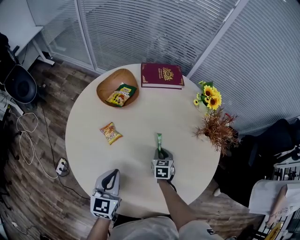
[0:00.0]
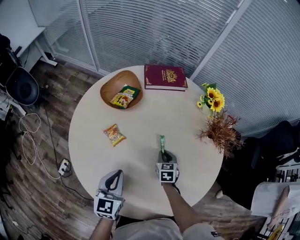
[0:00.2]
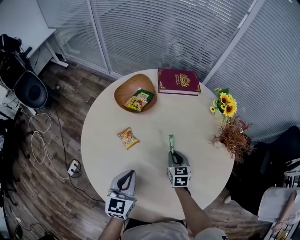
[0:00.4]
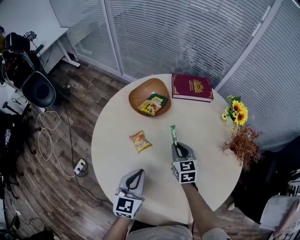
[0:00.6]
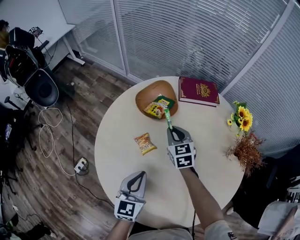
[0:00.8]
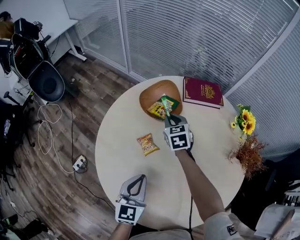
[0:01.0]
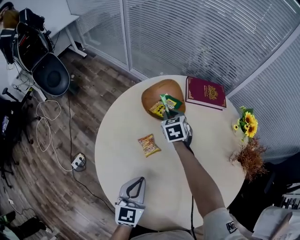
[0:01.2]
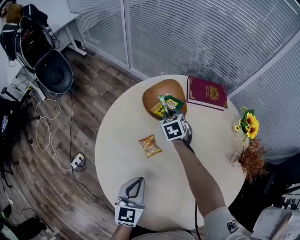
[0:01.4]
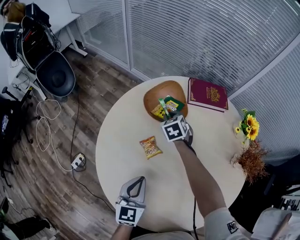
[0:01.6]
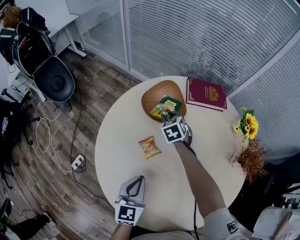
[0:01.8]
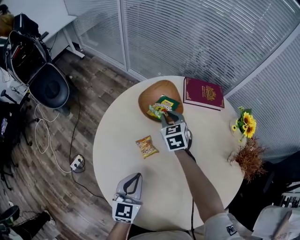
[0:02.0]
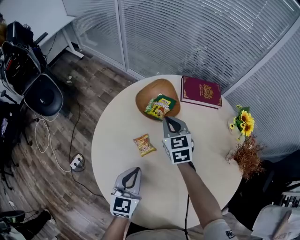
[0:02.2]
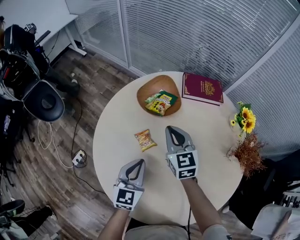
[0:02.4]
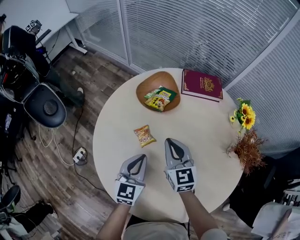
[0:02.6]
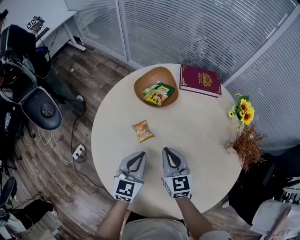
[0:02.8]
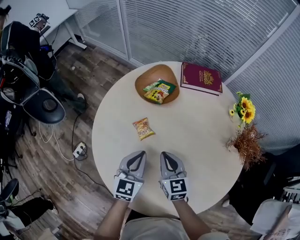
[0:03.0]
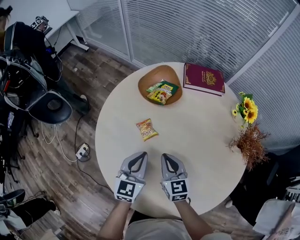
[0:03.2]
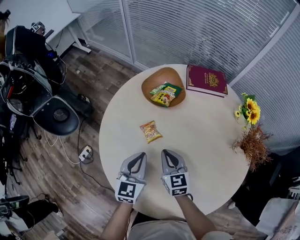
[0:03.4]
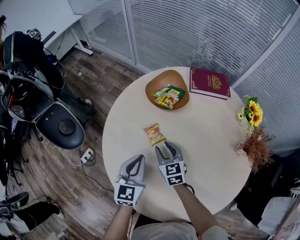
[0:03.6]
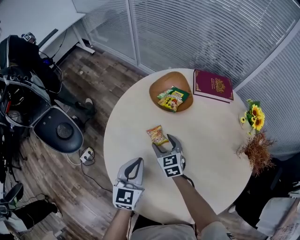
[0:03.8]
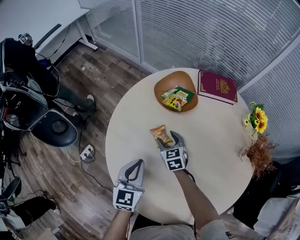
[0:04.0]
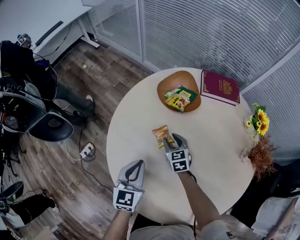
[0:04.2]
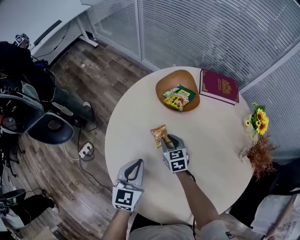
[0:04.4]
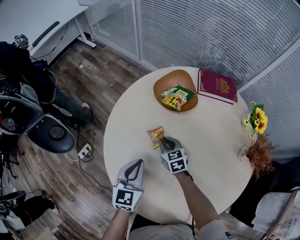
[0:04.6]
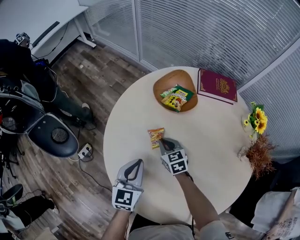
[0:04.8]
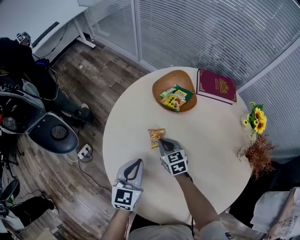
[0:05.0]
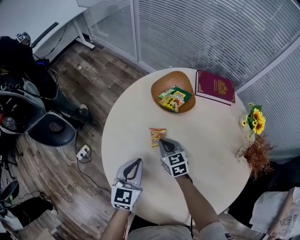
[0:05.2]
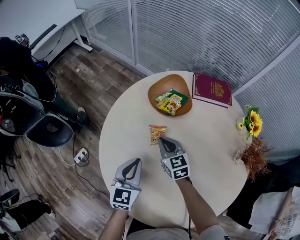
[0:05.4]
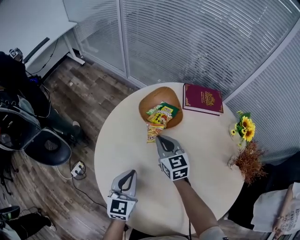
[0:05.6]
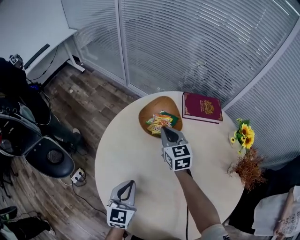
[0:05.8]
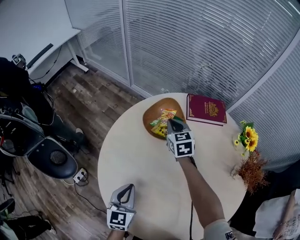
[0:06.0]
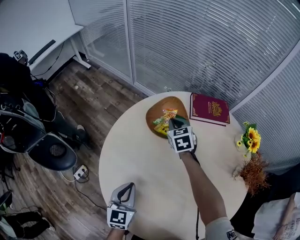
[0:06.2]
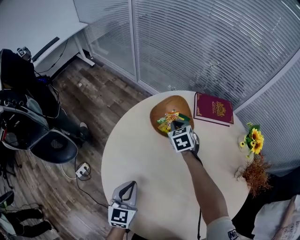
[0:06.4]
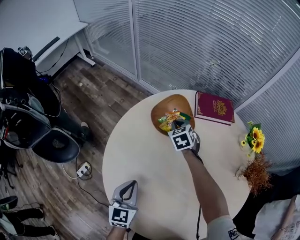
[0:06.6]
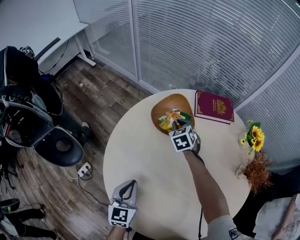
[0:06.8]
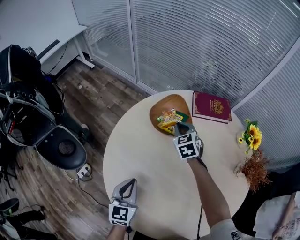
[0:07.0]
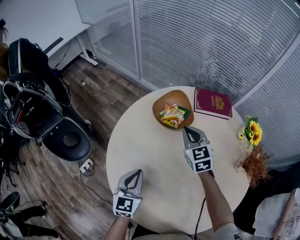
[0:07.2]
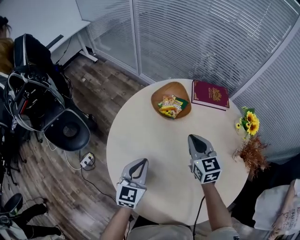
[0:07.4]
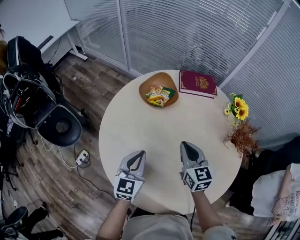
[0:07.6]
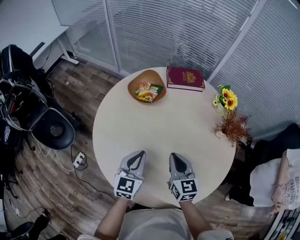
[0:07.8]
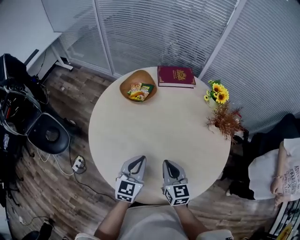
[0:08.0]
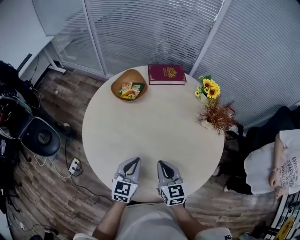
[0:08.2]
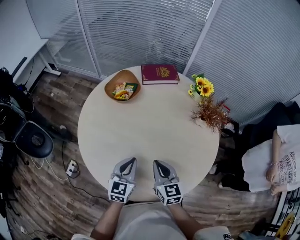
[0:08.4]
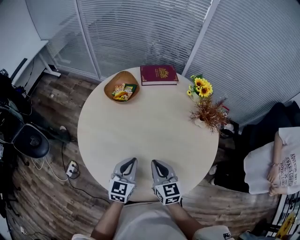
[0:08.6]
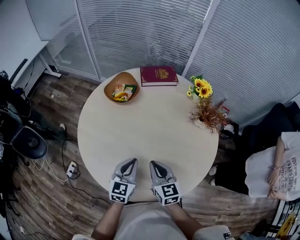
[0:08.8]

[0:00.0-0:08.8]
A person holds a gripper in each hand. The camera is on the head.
0:00.0 to 0:01.4: The right gripper shifts approximately 35 cm forward and to the left, and rotates roughly 30 degrees. Meanwhile the left gripper heads to the left, covering some 5 cm.
0:01.4 to 0:03.0: The left gripper ends up approximately 5 cm from where it was, while the right gripper shifts about 30 cm backward, and rotates some 30 degrees.
0:03.0 to 0:04.4: The right gripper moves downward, forward and to the left, about 20 cm, while the left gripper travels to the left by roughly 10 cm.
0:04.4 to 0:05.8: The right gripper moves upward, forward and to the right, roughly 20 cm.
0:05.8 to 0:07.4: The right gripper is displaced backward, upward and to the right by some 15 cm.
0:07.4 to 0:08.8: The left gripper travels to the right and backward by approximately 20 cm. The right gripper heads backward, covering some 25 cm.

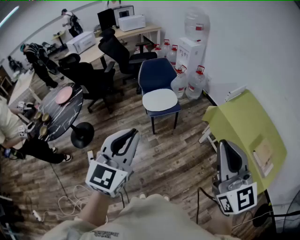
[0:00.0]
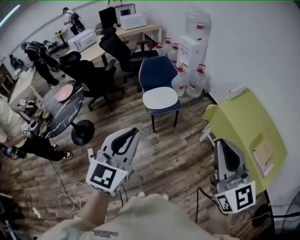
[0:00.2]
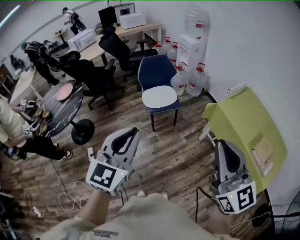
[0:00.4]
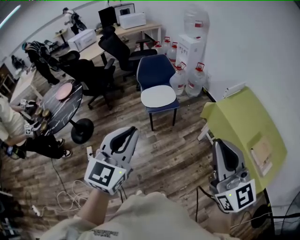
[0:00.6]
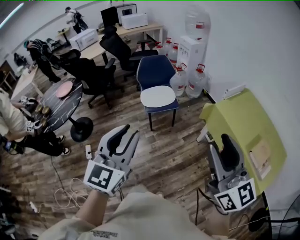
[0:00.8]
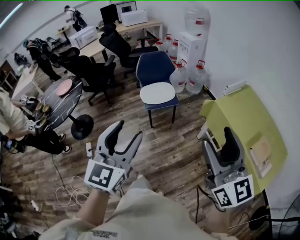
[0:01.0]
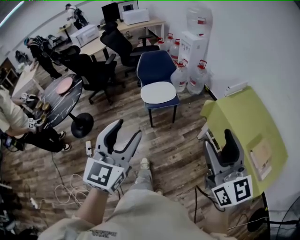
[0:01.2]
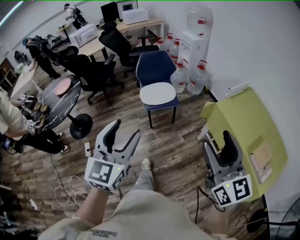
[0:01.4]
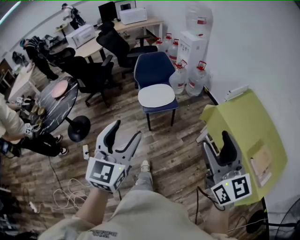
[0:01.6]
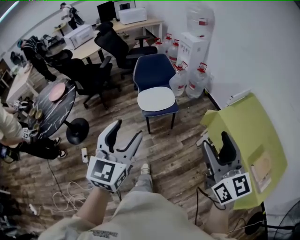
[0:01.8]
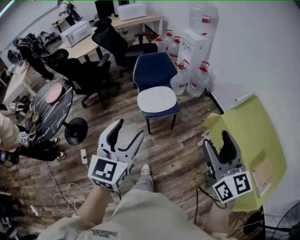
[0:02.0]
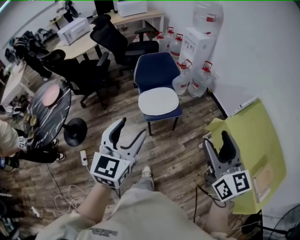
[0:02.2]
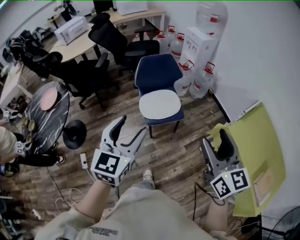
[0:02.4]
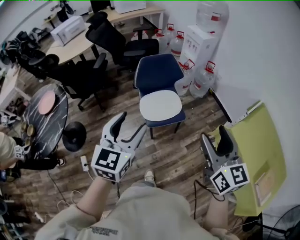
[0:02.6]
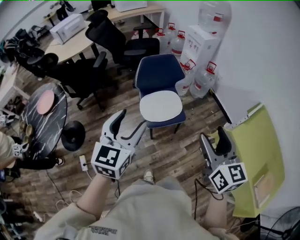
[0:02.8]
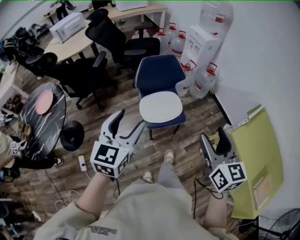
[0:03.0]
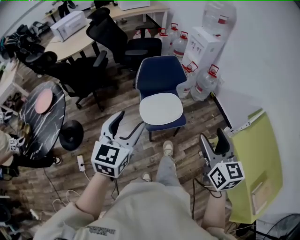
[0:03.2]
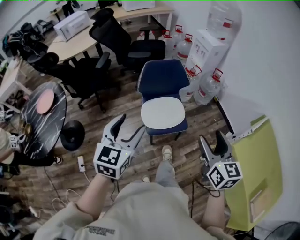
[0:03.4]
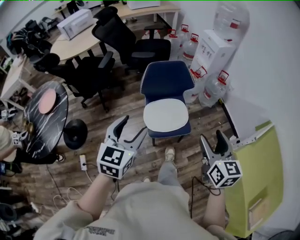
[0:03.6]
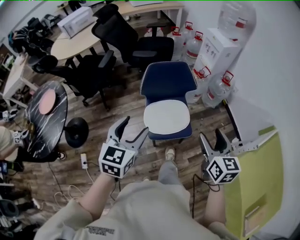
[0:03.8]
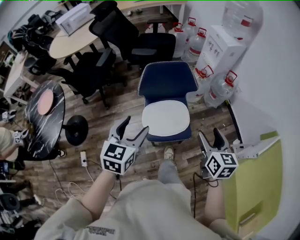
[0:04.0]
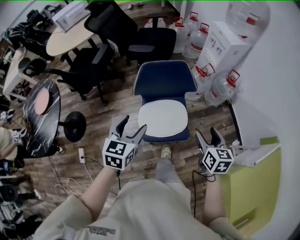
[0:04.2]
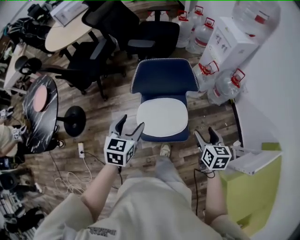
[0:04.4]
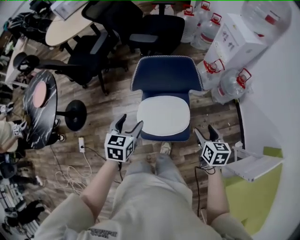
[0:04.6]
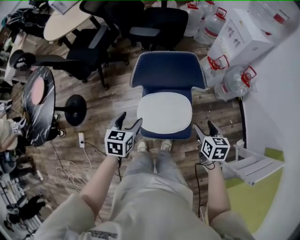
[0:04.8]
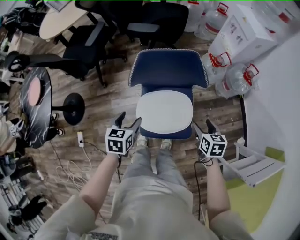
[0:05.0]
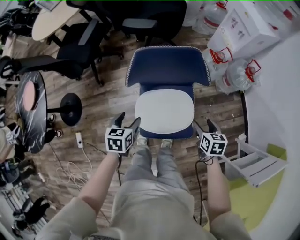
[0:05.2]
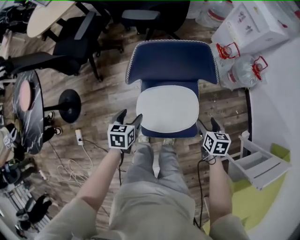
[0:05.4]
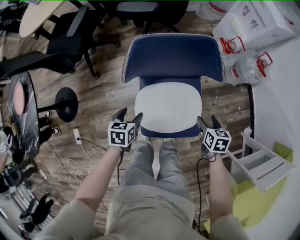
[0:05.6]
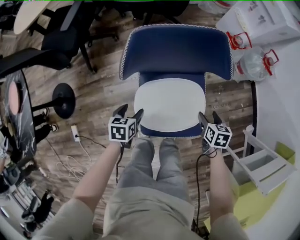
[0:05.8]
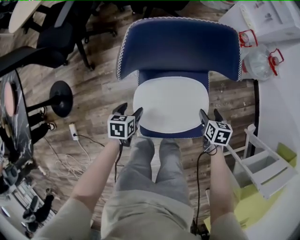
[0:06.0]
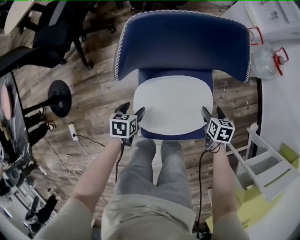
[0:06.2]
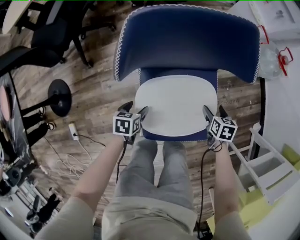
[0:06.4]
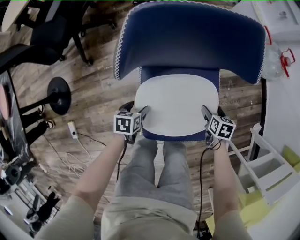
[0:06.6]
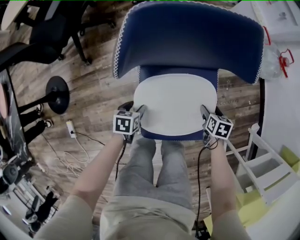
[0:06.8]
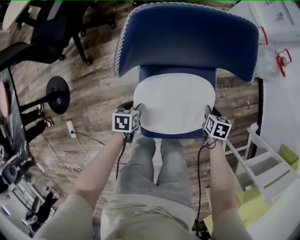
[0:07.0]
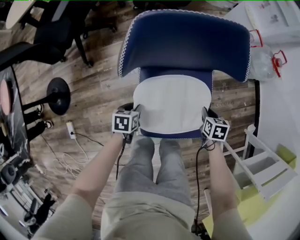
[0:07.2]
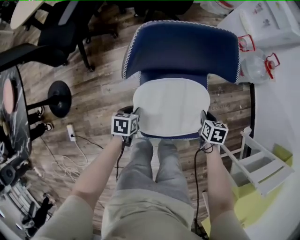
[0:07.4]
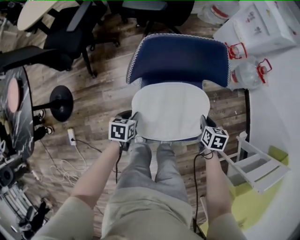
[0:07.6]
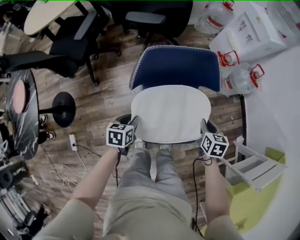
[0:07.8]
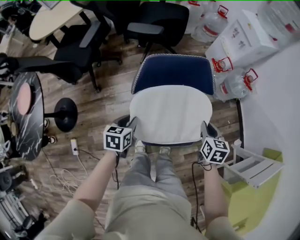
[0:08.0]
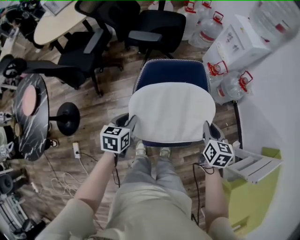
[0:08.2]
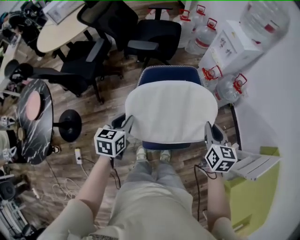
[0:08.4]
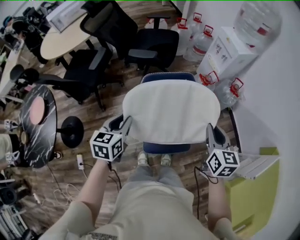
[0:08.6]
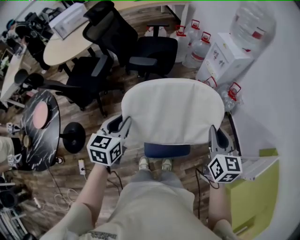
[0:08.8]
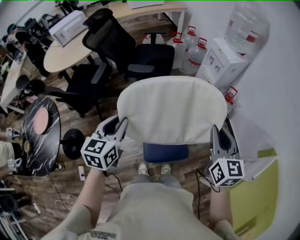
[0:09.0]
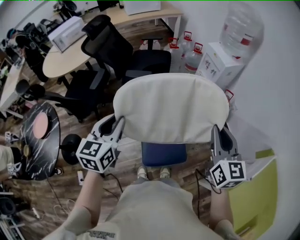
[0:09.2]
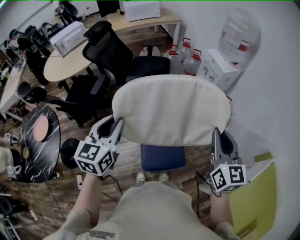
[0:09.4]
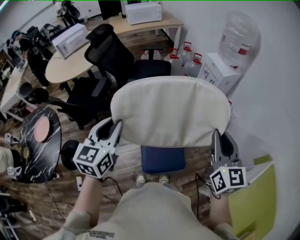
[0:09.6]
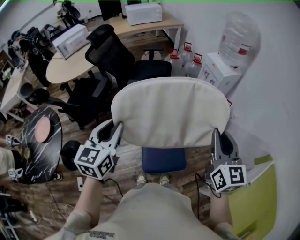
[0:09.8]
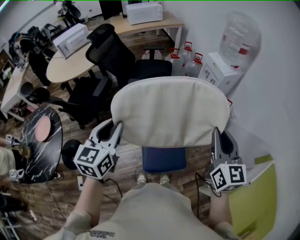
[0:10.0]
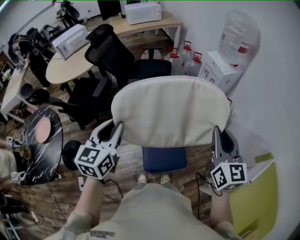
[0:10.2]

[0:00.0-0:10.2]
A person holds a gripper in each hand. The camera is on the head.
0:00.0 to 0:01.4: Both grippers move to the right and downward, about 10 cm. The right gripper opens its fingers. Meanwhile the left gripper opens its fingers.
0:01.4 to 0:03.0: Both grippers are carried forward, approximately 50 cm.
0:03.0 to 0:04.4: Both grippers move forward and downward, about 40 cm. The left gripper rotates some 30 degrees. The right gripper rotates approximately 30 degrees.
0:04.4 to 0:05.8: Both grippers move downward, approximately 40 cm. The left gripper swivels about 30 degrees. Meanwhile the right gripper changes its angle by roughly 20 degrees.
0:05.8 to 0:07.2: Both grippers move downward, about 10 cm. The right gripper closes; the left gripper closes its fingers.
0:07.2 to 0:08.8: The two grippers go about 60 cm upward. The left gripper points its fingers about 40 degrees further upward. Meanwhile the right gripper tilts its fingers roughly 50 degrees upward.
0:08.8 to 0:10.2: Both grippers travel together upward, some 15 cm.

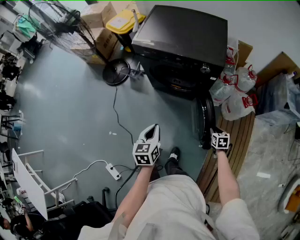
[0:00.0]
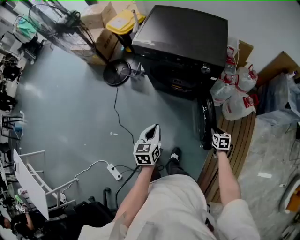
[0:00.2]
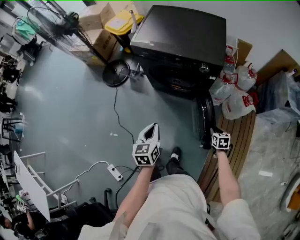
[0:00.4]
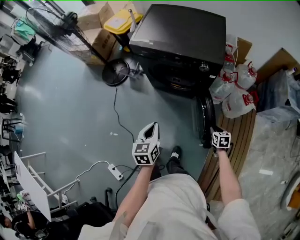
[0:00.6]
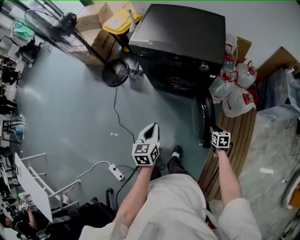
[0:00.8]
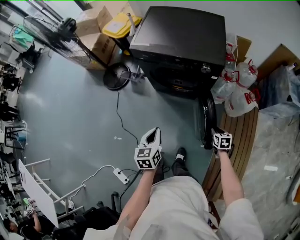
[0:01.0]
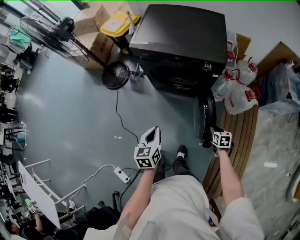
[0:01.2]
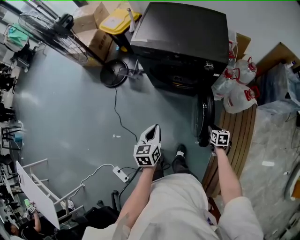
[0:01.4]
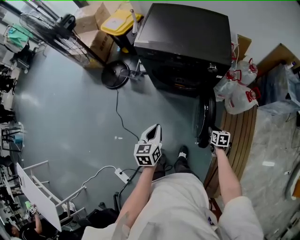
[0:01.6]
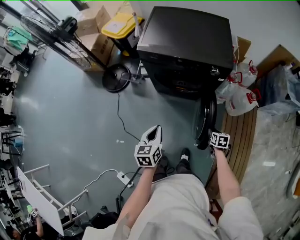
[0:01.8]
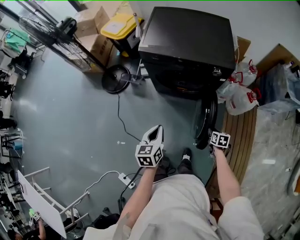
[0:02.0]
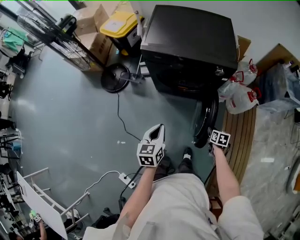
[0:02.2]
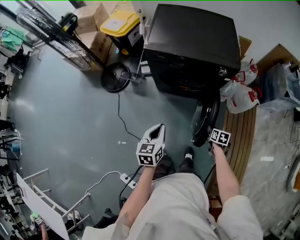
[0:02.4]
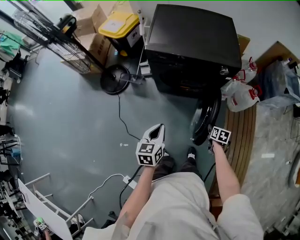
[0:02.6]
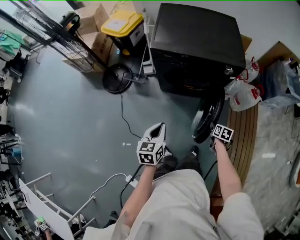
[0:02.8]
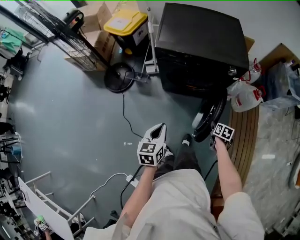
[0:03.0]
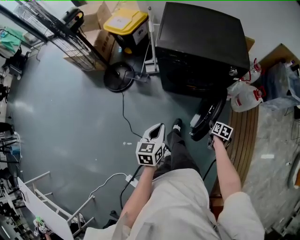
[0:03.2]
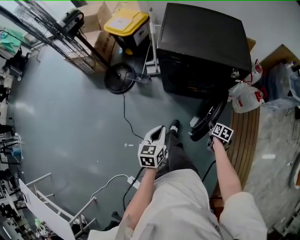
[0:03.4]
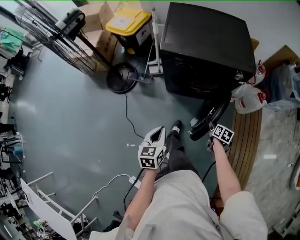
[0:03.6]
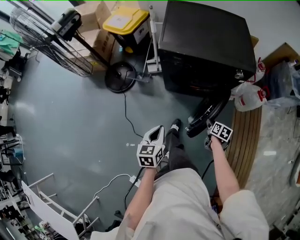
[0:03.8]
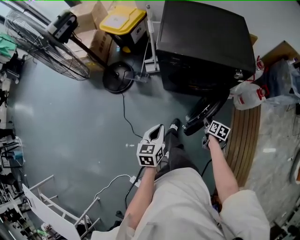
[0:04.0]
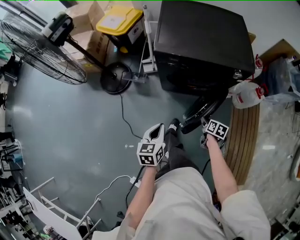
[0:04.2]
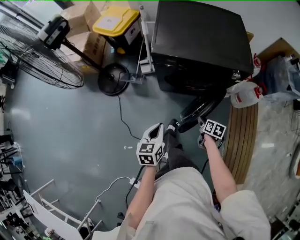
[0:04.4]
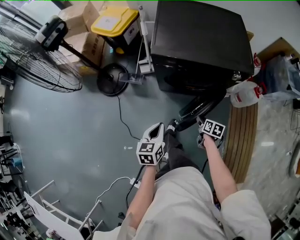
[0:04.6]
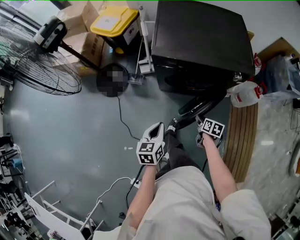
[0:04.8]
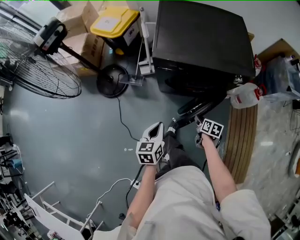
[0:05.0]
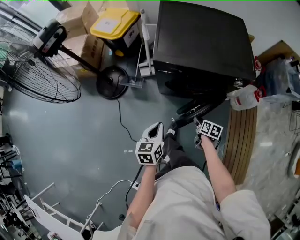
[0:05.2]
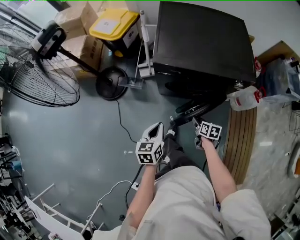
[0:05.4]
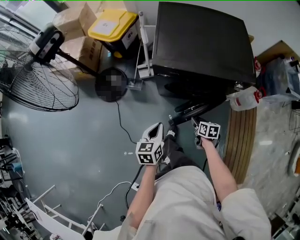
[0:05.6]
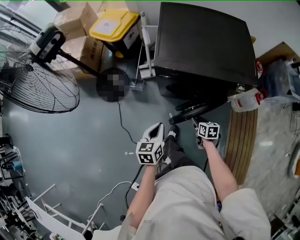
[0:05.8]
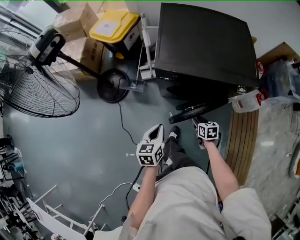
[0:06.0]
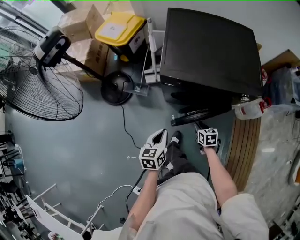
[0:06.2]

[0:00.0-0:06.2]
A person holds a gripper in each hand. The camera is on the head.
0:00.0 to 0:01.6: Both grippers move to the left, roughly 5 cm.
0:01.6 to 0:03.2: Both grippers move to the left, some 15 cm. The right gripper changes its angle by roughly 20 degrees.
0:03.2 to 0:04.6: The right gripper heads to the left and forward, covering approximately 15 cm; the left gripper travels forward by roughly 10 cm.
0:04.6 to 0:06.2: The right gripper shifts some 10 cm forward and to the left, and turns by about 30 degrees, while the left gripper heads forward, covering roughly 10 cm.
